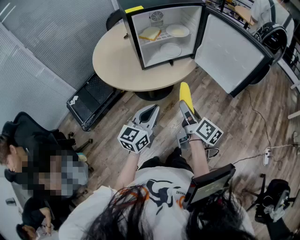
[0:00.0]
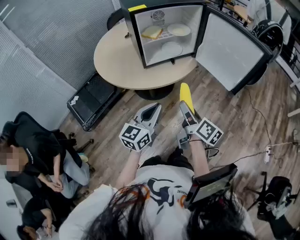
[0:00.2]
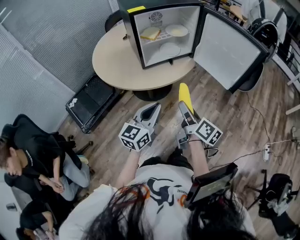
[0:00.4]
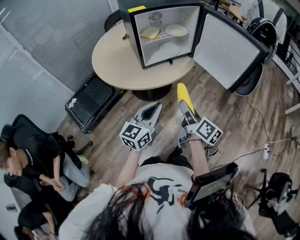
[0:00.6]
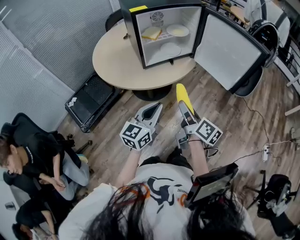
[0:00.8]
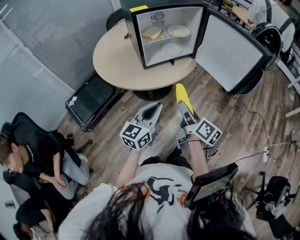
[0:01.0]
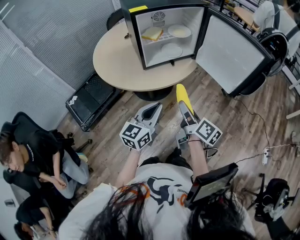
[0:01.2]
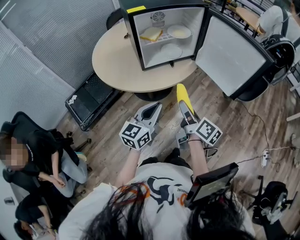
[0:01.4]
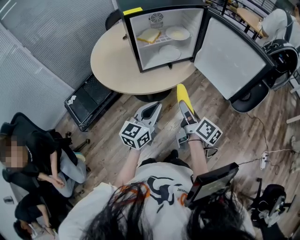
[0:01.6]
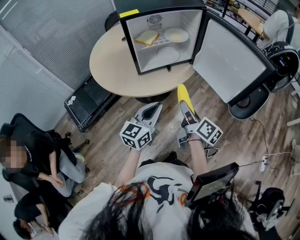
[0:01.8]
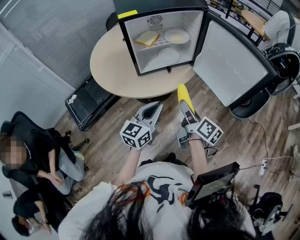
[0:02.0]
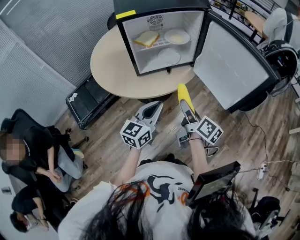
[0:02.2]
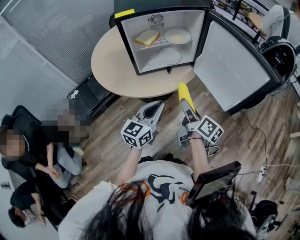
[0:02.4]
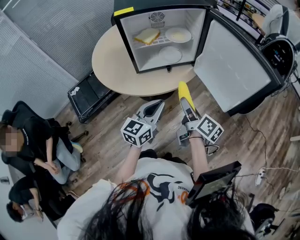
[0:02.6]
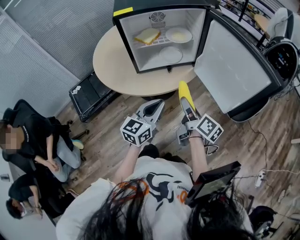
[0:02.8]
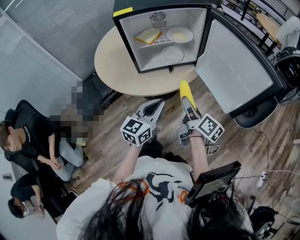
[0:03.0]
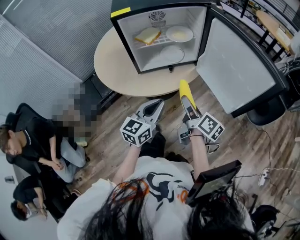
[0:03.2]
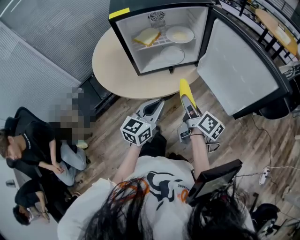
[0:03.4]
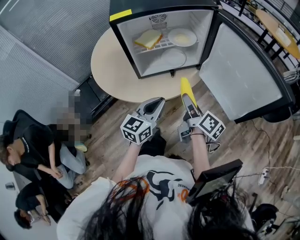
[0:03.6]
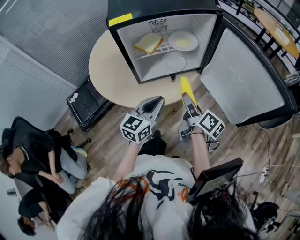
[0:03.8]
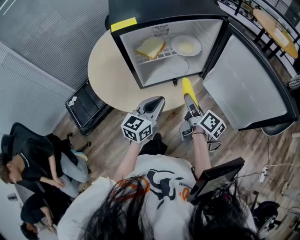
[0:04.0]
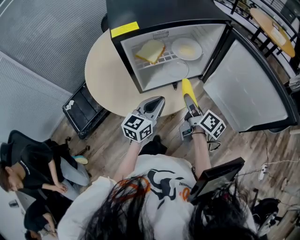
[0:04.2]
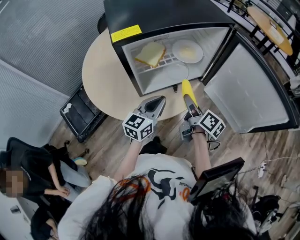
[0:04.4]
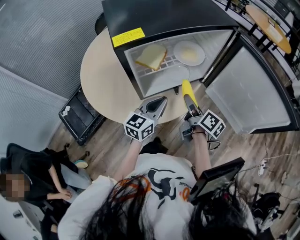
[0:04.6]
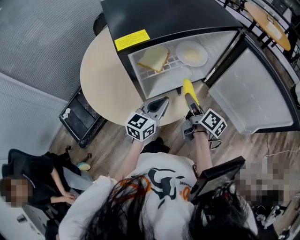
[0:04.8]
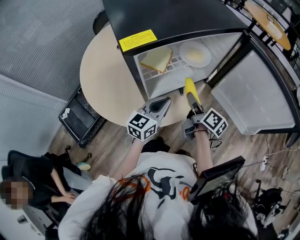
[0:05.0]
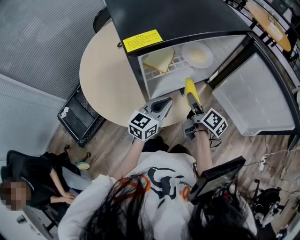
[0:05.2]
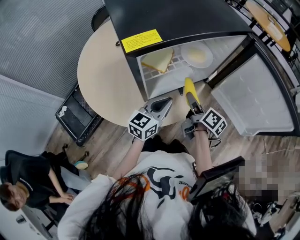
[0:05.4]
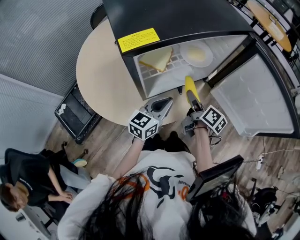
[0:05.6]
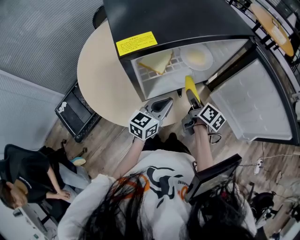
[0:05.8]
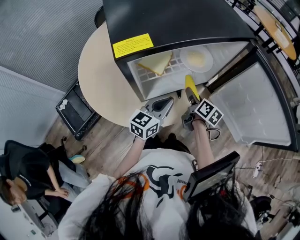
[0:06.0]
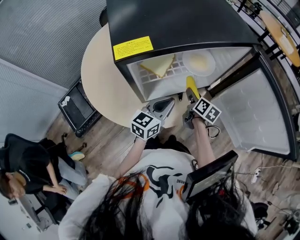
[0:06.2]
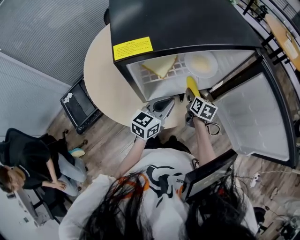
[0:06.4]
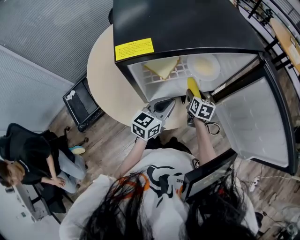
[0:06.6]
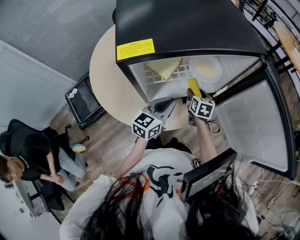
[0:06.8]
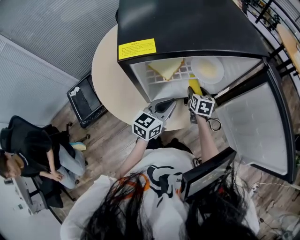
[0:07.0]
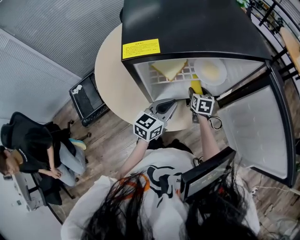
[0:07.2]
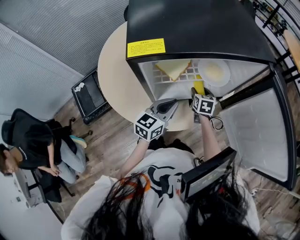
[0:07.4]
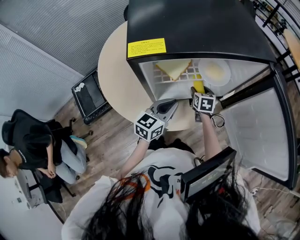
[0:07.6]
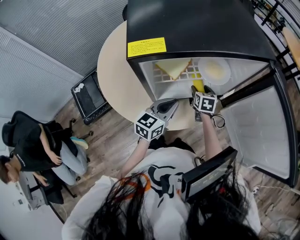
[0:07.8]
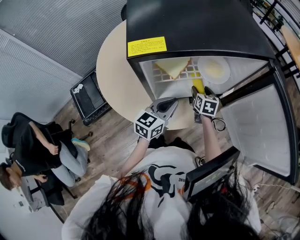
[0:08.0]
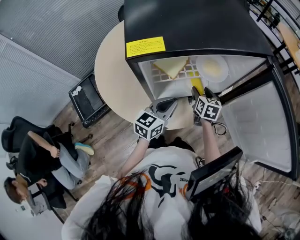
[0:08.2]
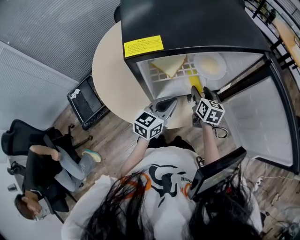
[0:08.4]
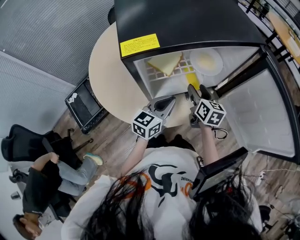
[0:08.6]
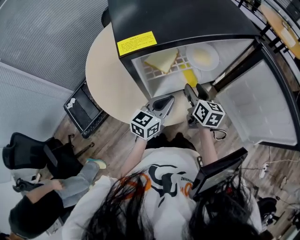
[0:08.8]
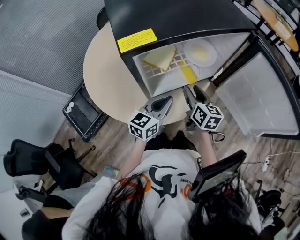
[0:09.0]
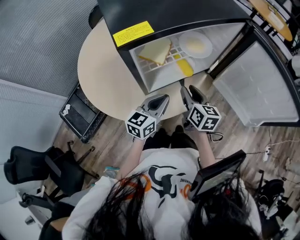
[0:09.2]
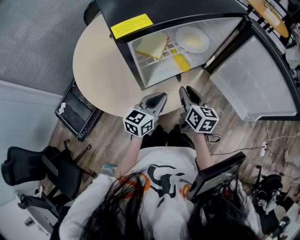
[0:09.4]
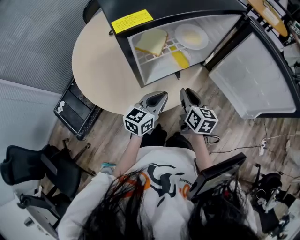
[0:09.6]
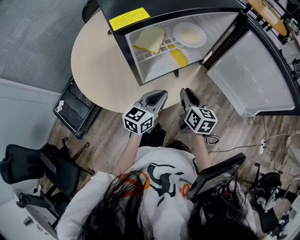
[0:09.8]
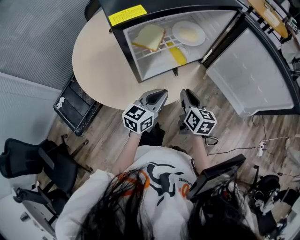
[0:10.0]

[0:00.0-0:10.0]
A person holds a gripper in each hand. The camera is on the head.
0:00.0 to 0:01.4: The grippers stay close to where they were, moving slightly.
0:01.4 to 0:02.8: The grippers both shift forward and to the right by some 10 cm.
0:02.8 to 0:04.2: Both grippers travel together forward and to the left, roughly 15 cm.
0:04.2 to 0:05.8: The right gripper heads forward and downward, covering roughly 10 cm, while the left gripper travels forward by approximately 5 cm.
0:05.8 to 0:07.2: The right gripper travels forward and downward by some 15 cm, and rotates around the line of its fingers by some 50 degrees, counterclockwise from behind.
0:07.2 to 0:08.6: The right gripper heads upward and backward, covering about 10 cm, and swivels about 20 degrees.
0:08.6 to 0:10.0: The left gripper heads backward, covering about 10 cm. The right gripper moves backward, roughly 15 cm, and closes up.

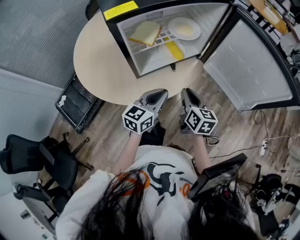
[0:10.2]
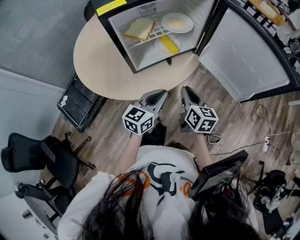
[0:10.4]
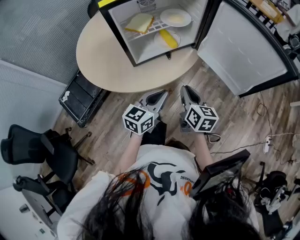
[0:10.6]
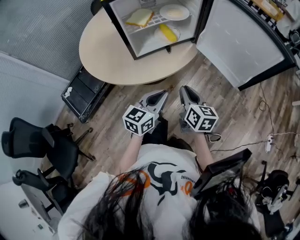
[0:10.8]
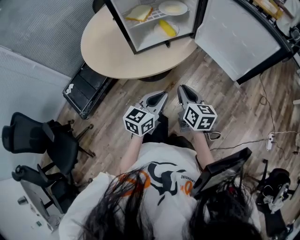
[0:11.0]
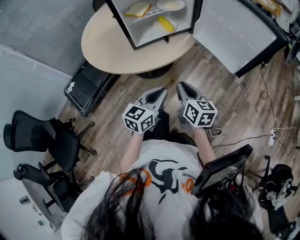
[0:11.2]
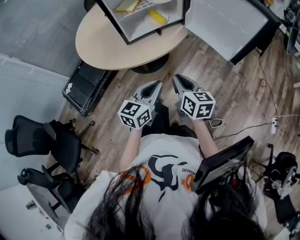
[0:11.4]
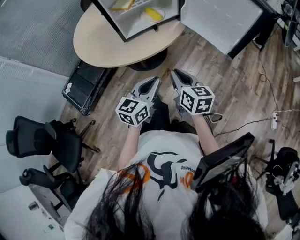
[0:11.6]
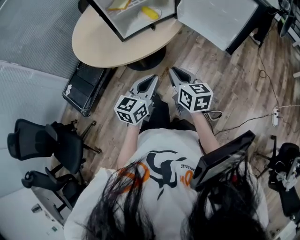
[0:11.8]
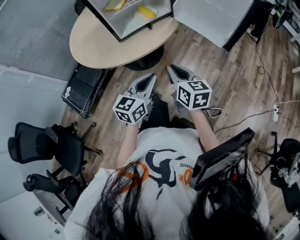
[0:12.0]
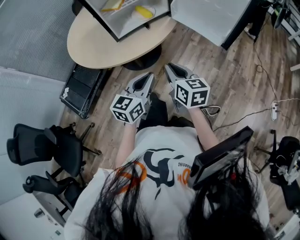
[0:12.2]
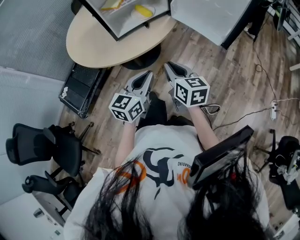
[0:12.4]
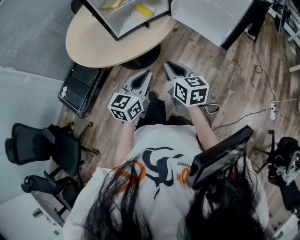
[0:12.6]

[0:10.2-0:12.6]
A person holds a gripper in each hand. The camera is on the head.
0:10.2 to 0:11.4: The grippers both shift backward by approximately 20 cm.
0:11.4 to 0:12.6: There are only small adjustments of the grippers.

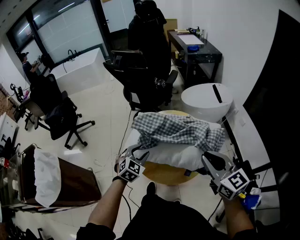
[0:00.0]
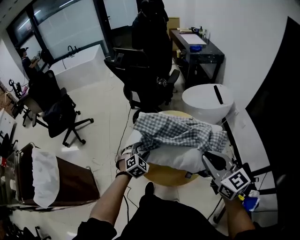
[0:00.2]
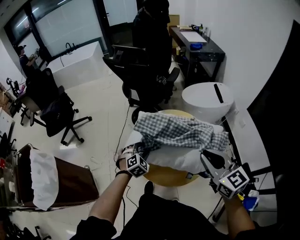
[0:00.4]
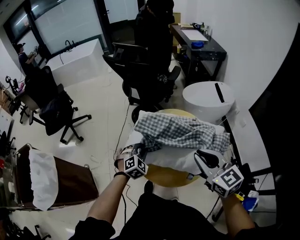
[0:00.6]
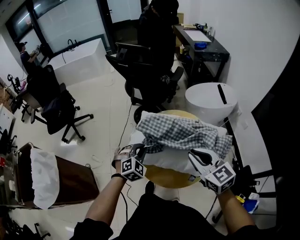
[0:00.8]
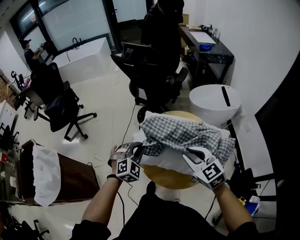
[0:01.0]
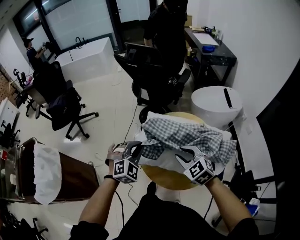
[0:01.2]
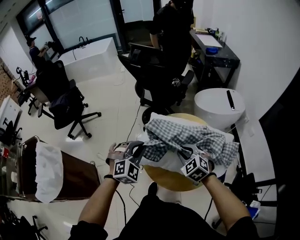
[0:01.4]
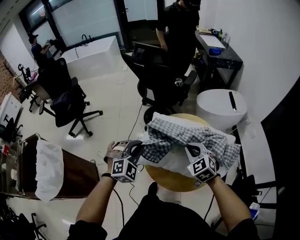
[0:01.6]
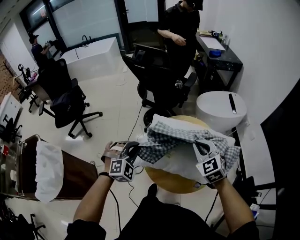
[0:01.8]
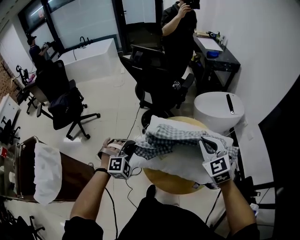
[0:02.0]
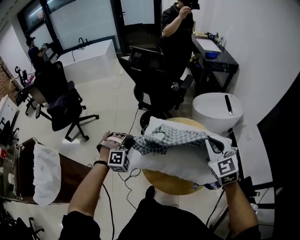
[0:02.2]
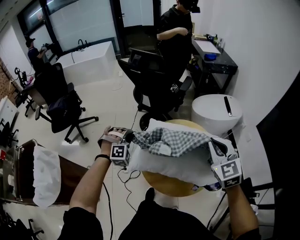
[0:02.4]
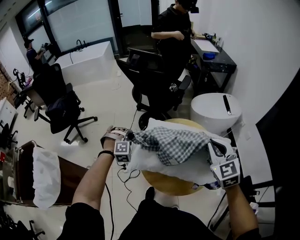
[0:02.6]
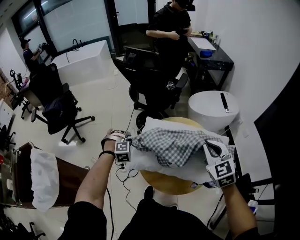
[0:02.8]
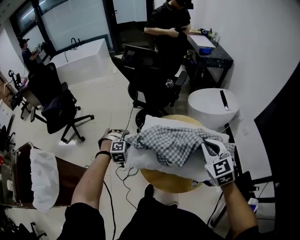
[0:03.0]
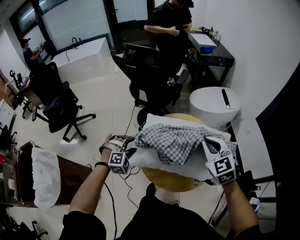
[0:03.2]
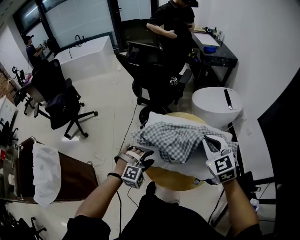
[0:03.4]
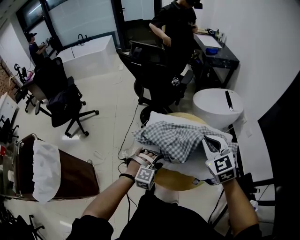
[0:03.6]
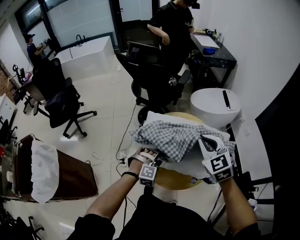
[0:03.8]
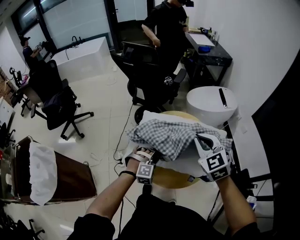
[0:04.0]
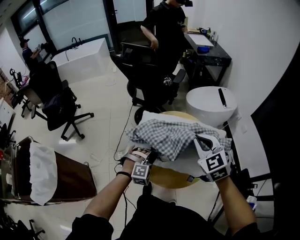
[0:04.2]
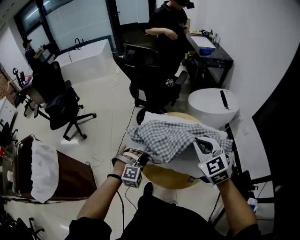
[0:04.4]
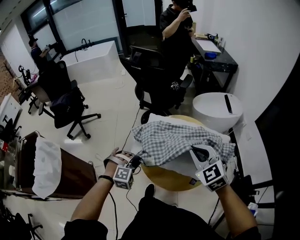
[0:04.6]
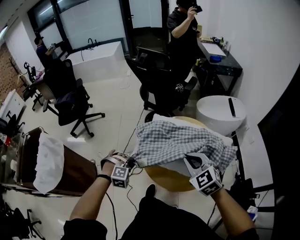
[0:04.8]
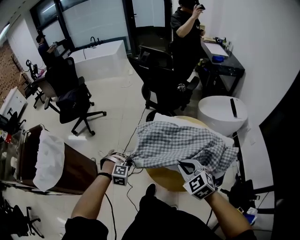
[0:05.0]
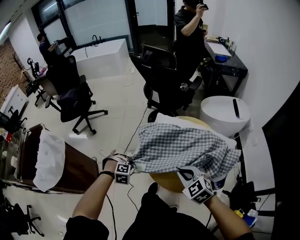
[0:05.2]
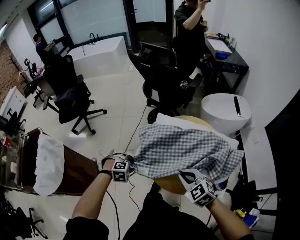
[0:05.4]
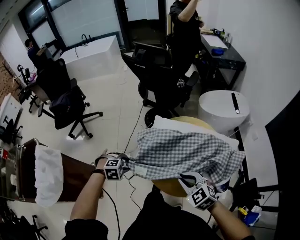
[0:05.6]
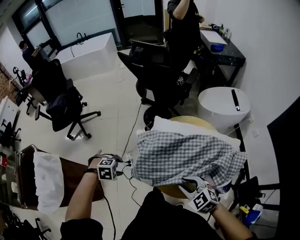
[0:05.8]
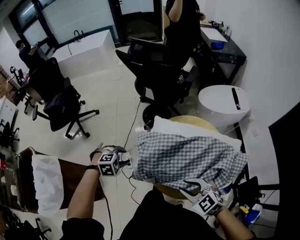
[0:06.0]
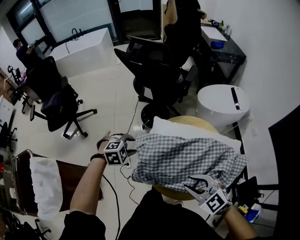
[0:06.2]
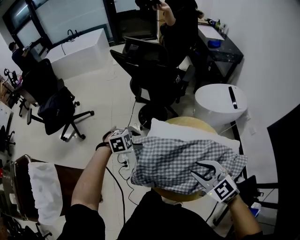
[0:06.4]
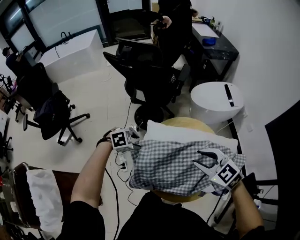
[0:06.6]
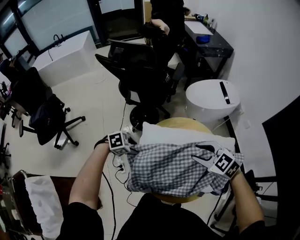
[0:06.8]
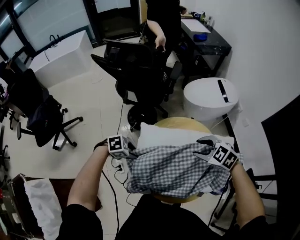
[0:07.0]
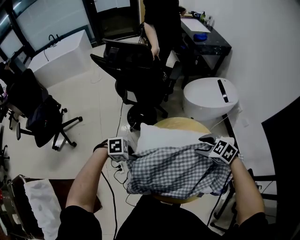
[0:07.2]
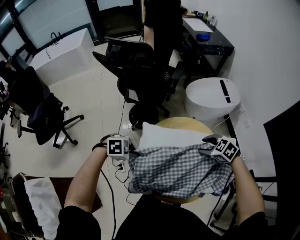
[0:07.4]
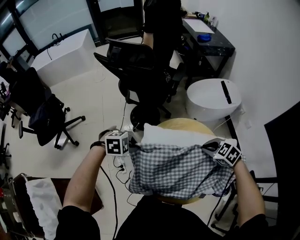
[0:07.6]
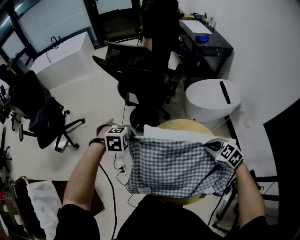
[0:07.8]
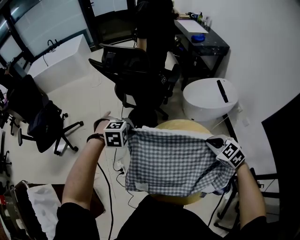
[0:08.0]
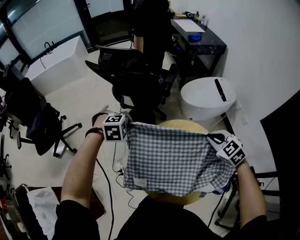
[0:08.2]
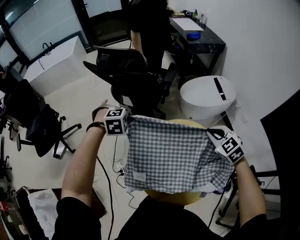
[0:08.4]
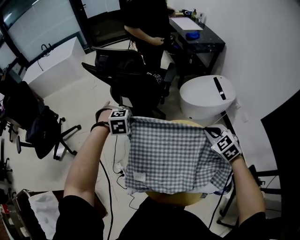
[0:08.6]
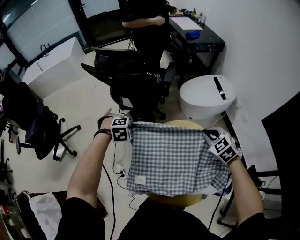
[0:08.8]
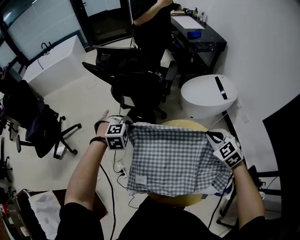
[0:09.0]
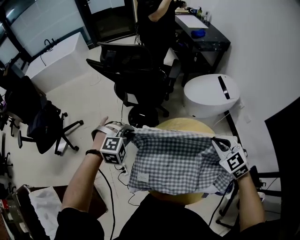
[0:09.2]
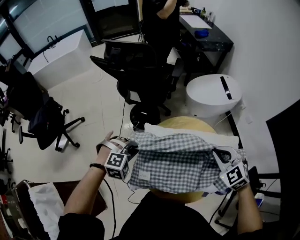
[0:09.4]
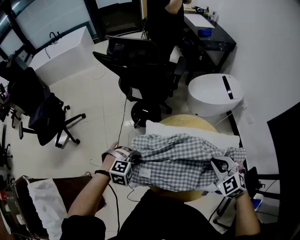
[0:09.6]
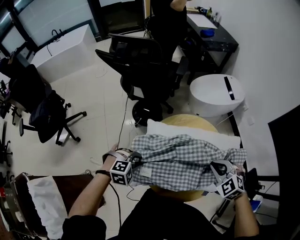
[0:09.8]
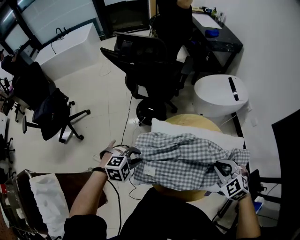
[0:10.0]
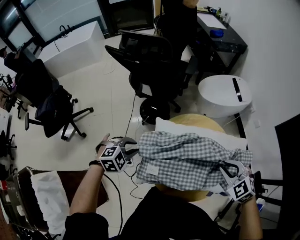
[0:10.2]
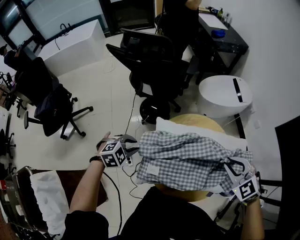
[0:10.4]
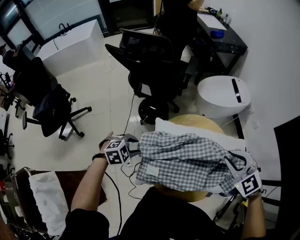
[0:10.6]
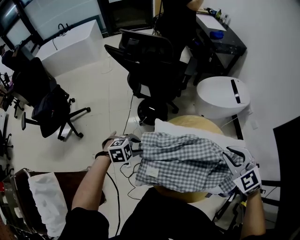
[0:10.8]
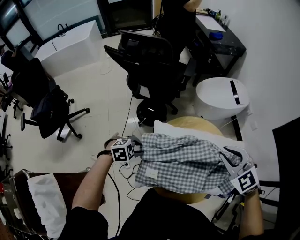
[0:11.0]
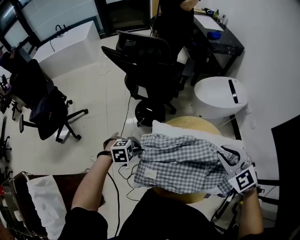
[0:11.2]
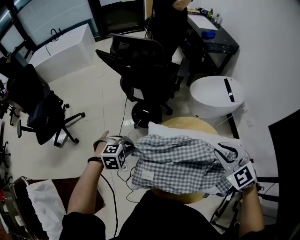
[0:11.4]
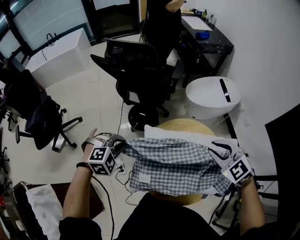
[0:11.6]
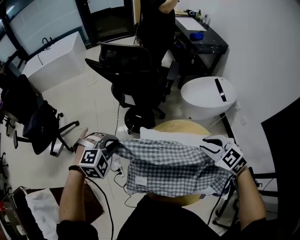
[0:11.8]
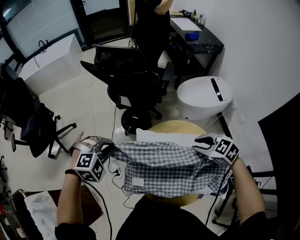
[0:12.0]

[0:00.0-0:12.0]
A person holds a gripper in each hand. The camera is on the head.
0:00.0 to 0:01.6: The right gripper goes roughly 25 cm forward, downward and to the left, and swivels about 40 degrees, while the left gripper is displaced to the left and upward by about 10 cm, changes its angle by some 20 degrees, and closes.
0:01.6 to 0:03.0: The right gripper shifts approximately 10 cm upward and to the right. The left gripper is displaced downward, forward and to the left by approximately 20 cm, changes its angle by approximately 30 degrees, and opens.
0:03.0 to 0:04.4: The left gripper heads to the right and backward, covering some 20 cm, and closes.
0:04.4 to 0:06.0: The left gripper moves roughly 20 cm, rotates roughly 30 degrees, and opens. The right gripper changes place by about 20 cm, rotates some 30 degrees, and opens its fingers.
0:06.0 to 0:07.6: The left gripper ends up roughly 15 cm from where it was, changes its angle by approximately 20 degrees, and closes. The right gripper changes place by roughly 25 cm, turns by about 20 degrees, and closes its fingers.
0:07.6 to 0:09.0: The right gripper ends up about 10 cm from where it was, and rotates some 30 degrees. Meanwhile the left gripper changes place by some 15 cm, and changes its angle by about 30 degrees.
0:09.0 to 0:10.4: The two grippers go roughly 15 cm backward. The left gripper rotates roughly 20 degrees, and opens up.
0:10.4 to 0:12.0: The right gripper shifts by approximately 10 cm, and rotates approximately 20 degrees; the left gripper goes roughly 10 cm upward, and turns by some 20 degrees.
